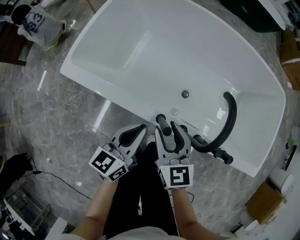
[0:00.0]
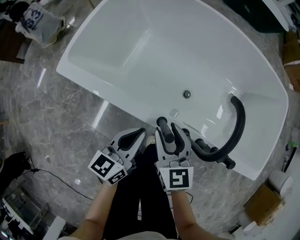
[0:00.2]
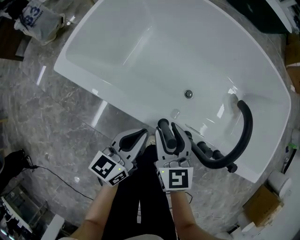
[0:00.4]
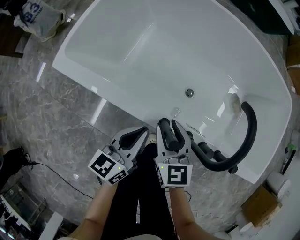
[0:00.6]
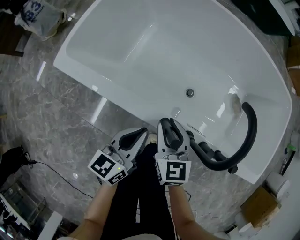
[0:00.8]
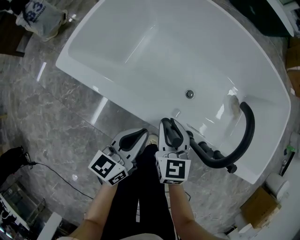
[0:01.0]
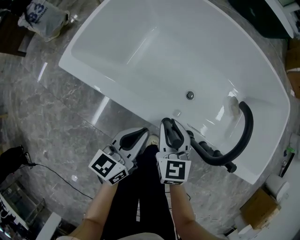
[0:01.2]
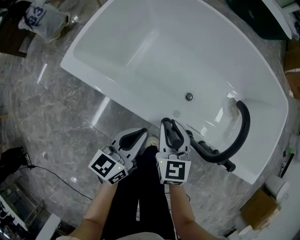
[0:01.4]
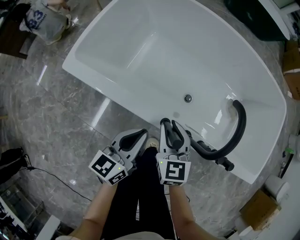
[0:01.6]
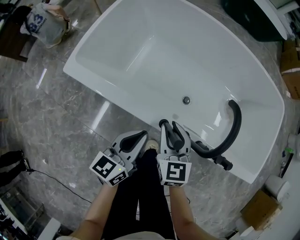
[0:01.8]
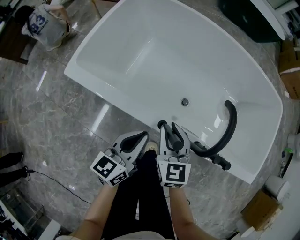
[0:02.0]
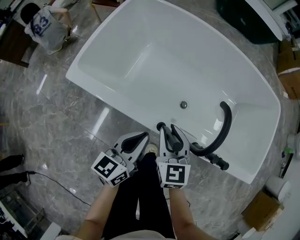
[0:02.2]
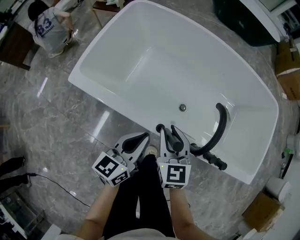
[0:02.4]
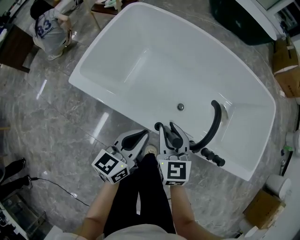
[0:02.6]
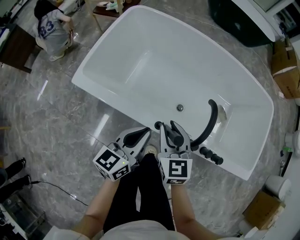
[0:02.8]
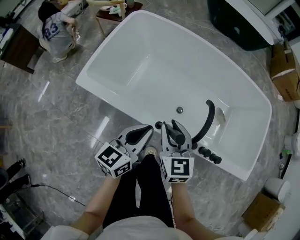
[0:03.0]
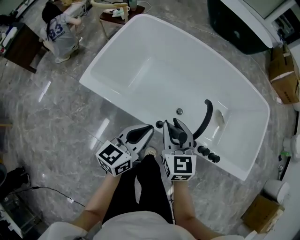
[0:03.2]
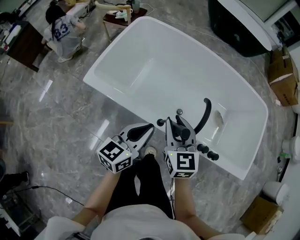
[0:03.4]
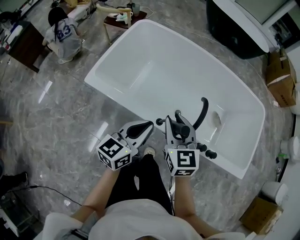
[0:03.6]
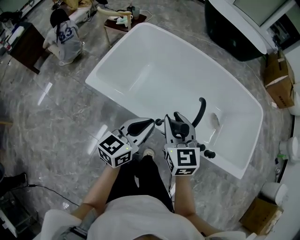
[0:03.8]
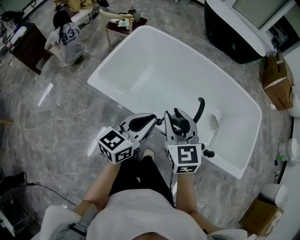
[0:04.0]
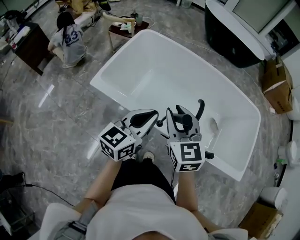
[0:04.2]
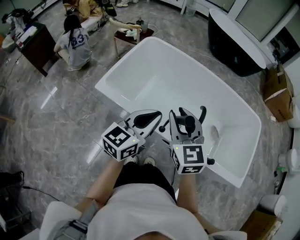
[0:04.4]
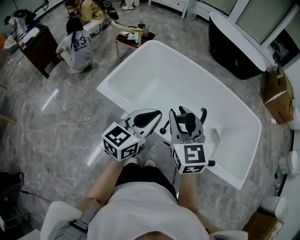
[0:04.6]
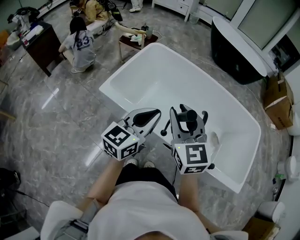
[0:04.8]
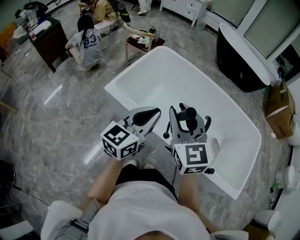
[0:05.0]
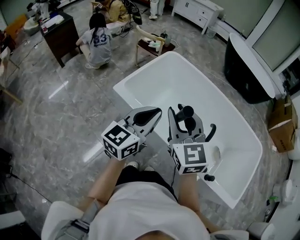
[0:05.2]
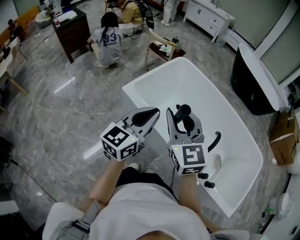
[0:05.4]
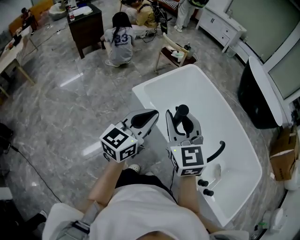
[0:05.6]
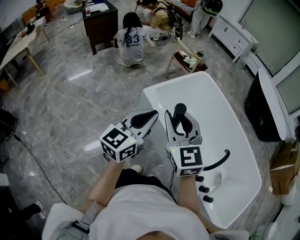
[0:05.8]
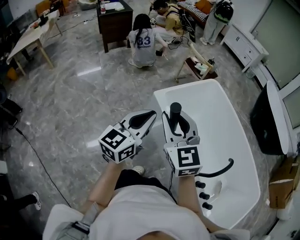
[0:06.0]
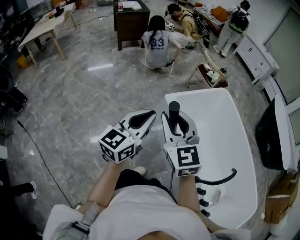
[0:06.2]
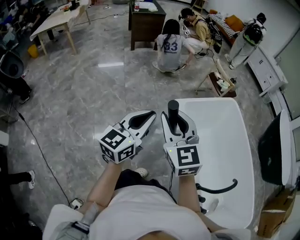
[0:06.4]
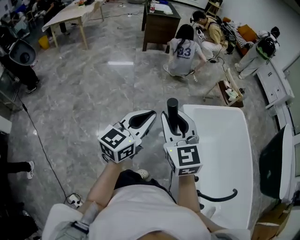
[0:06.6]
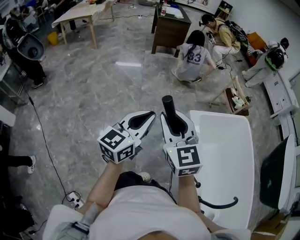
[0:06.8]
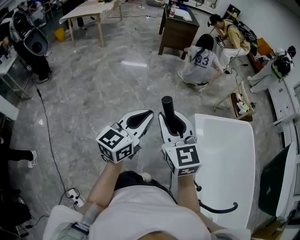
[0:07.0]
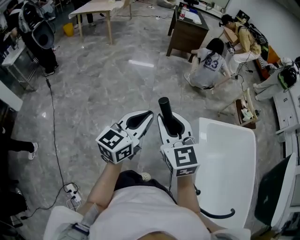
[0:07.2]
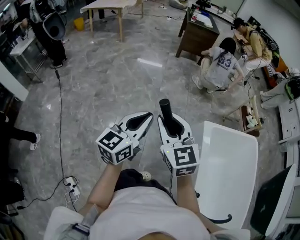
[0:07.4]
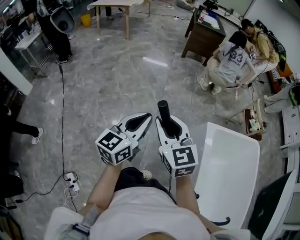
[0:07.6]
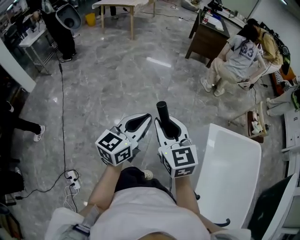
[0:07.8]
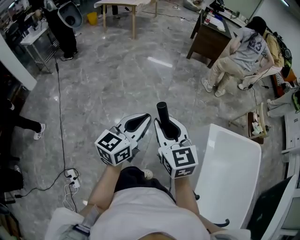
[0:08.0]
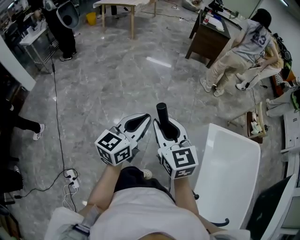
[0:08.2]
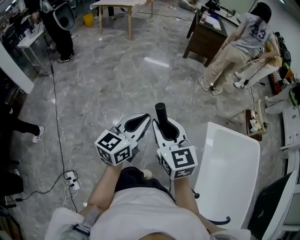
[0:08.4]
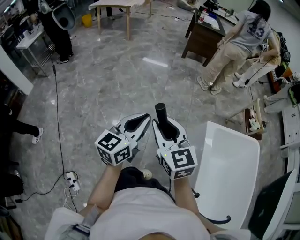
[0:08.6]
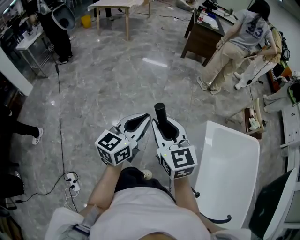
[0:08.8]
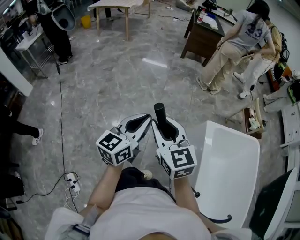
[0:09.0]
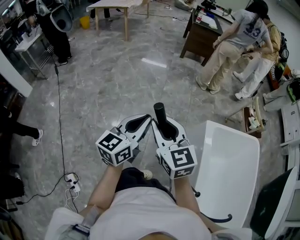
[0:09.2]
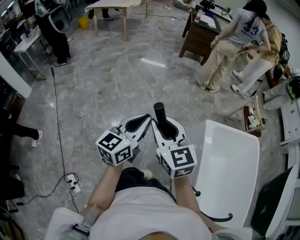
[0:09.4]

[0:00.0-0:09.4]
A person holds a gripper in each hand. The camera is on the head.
0:01.6 to 0:03.2: Both grippers travel together upward, some 15 cm.
0:03.2 to 0:04.8: The two grippers go approximately 15 cm upward.
0:04.8 to 0:06.2: The left gripper shifts by approximately 30 cm, and rotates approximately 40 degrees. Meanwhile the right gripper shifts by roughly 30 cm, and turns by some 40 degrees.
0:06.2 to 0:07.8: The right gripper ends up approximately 25 cm from where it was, and swivels about 40 degrees, while the left gripper moves about 25 cm, and changes its angle by some 40 degrees.
0:07.8 to 0:09.4: There are only small adjustments of the grippers.

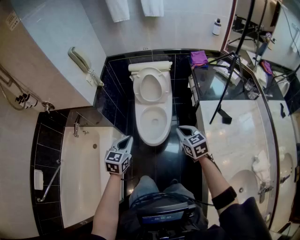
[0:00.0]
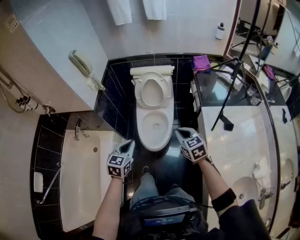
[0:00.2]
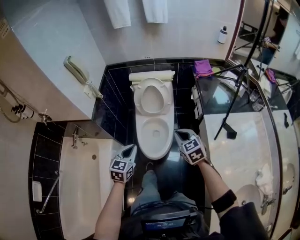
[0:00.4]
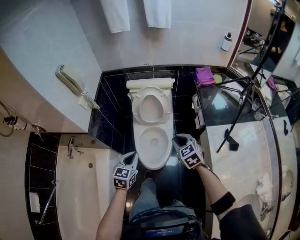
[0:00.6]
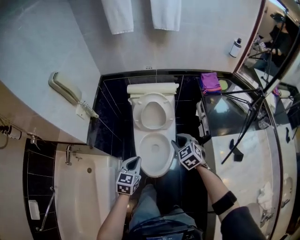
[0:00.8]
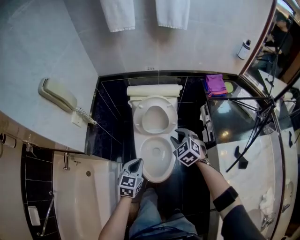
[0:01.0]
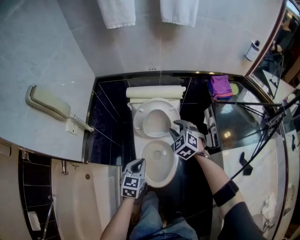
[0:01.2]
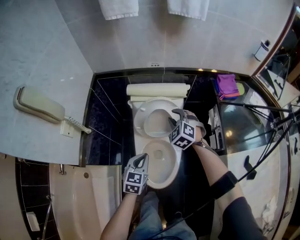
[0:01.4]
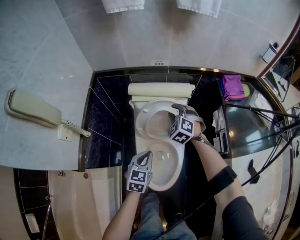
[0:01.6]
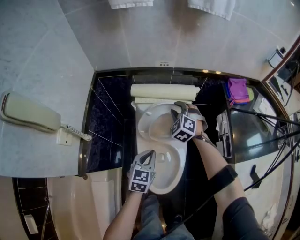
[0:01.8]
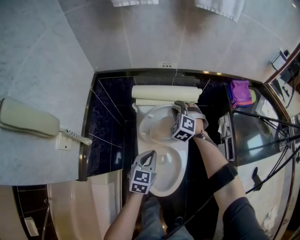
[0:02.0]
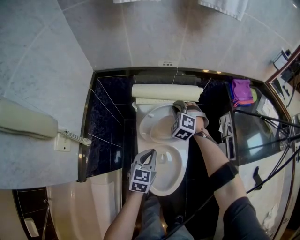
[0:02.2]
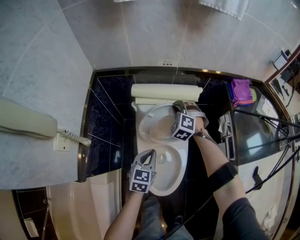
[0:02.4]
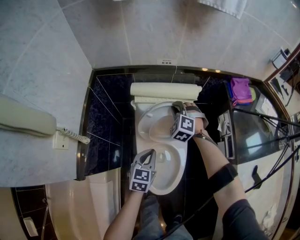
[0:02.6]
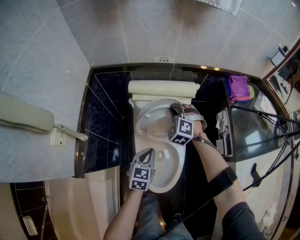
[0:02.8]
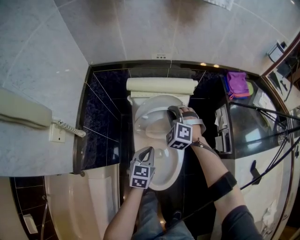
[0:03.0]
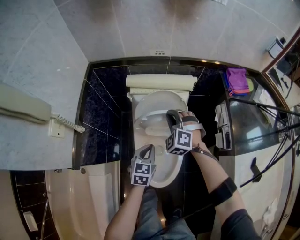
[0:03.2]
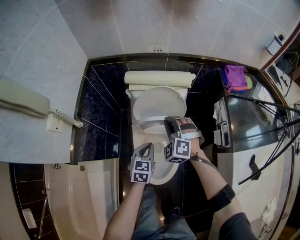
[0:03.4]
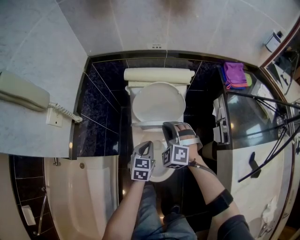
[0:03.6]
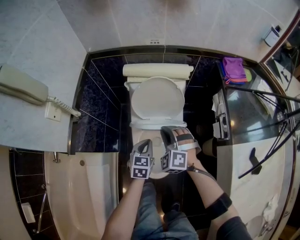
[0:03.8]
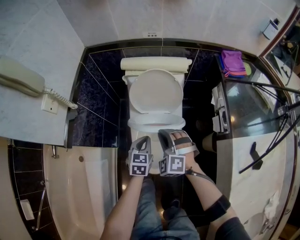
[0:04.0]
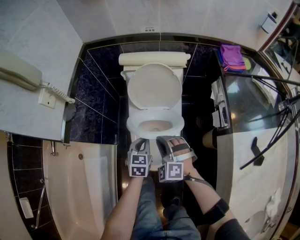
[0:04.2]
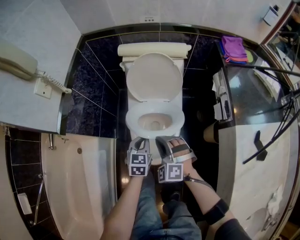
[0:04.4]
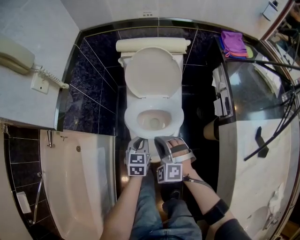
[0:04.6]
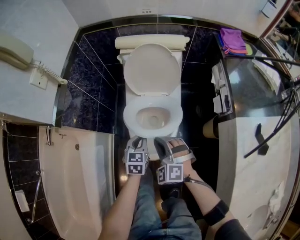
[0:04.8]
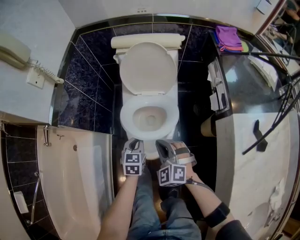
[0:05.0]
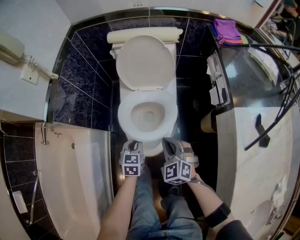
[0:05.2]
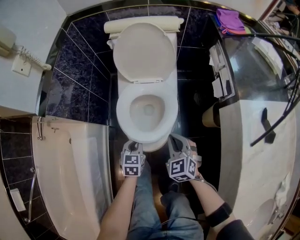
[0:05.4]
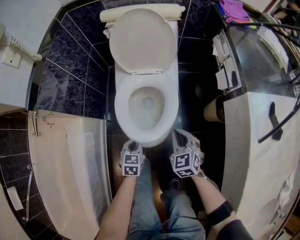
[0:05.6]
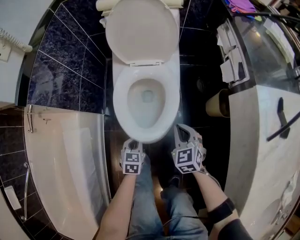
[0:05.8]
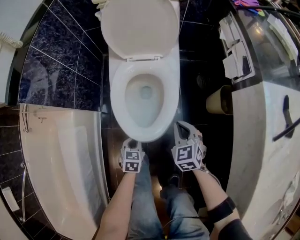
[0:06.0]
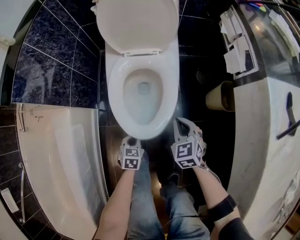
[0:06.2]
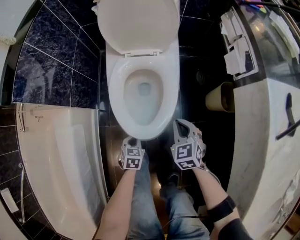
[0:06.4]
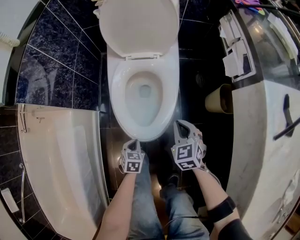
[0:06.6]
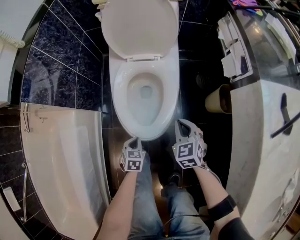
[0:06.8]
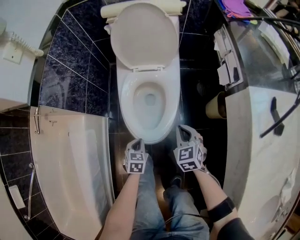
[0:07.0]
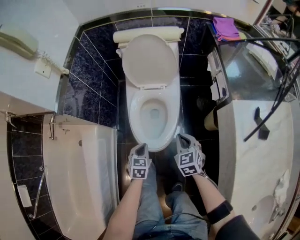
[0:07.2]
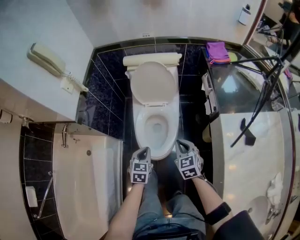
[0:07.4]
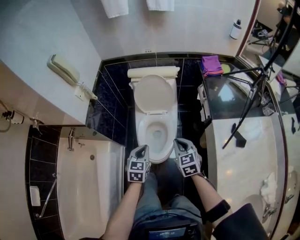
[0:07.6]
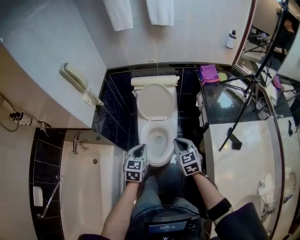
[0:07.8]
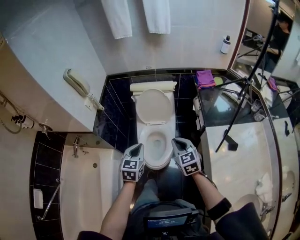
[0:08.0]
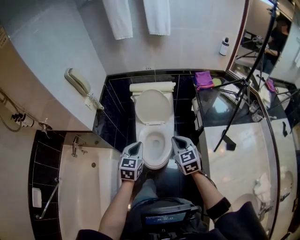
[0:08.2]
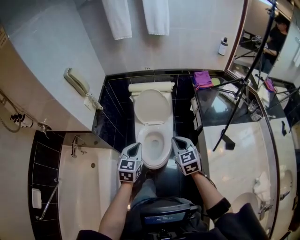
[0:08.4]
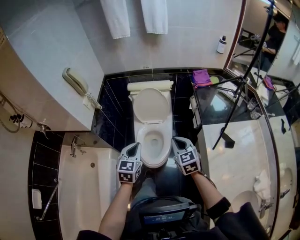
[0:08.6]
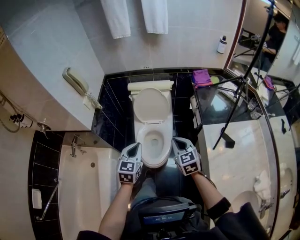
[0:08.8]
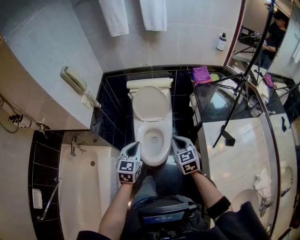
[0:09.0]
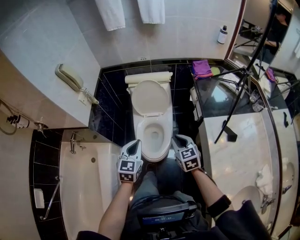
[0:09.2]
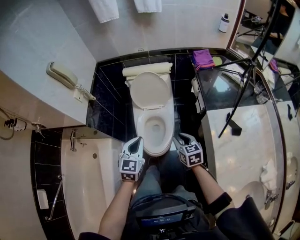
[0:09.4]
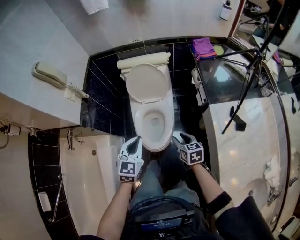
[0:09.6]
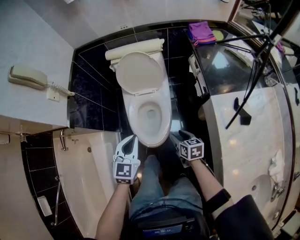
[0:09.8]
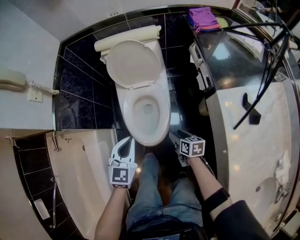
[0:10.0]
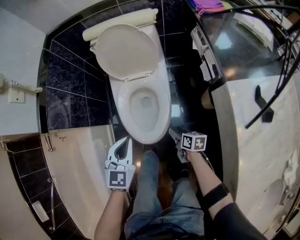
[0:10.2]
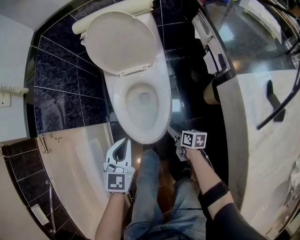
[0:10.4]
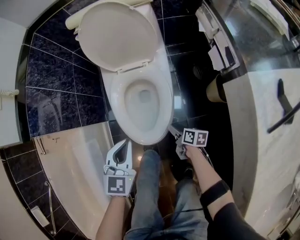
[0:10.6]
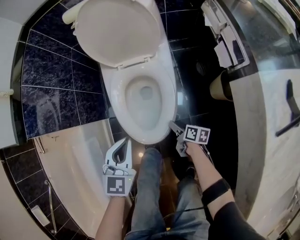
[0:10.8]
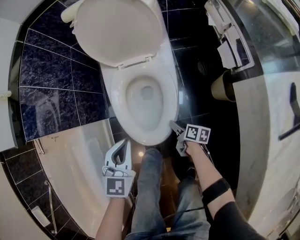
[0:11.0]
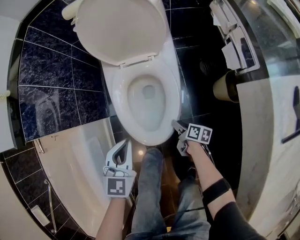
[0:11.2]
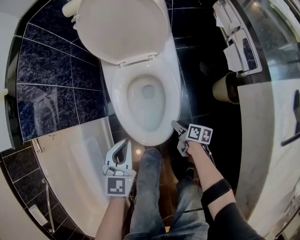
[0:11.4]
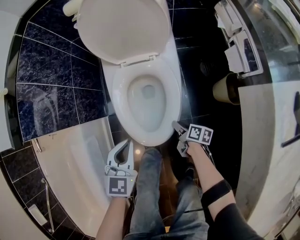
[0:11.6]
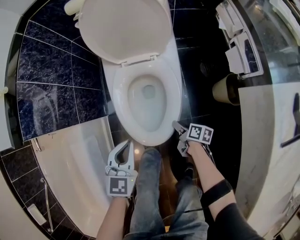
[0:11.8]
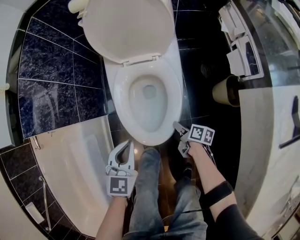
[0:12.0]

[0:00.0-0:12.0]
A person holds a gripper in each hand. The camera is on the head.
0:00.0 to 0:01.6: The right gripper moves forward, about 50 cm, rolls counterclockwise, seen from behind, by approximately 40 degrees, and opens its fingers. The left gripper goes approximately 40 cm forward and downward.
0:01.6 to 0:03.0: The left gripper ends up approximately 5 cm from where it was, while the right gripper closes.
0:03.0 to 0:04.4: The left gripper is displaced backward and downward by approximately 15 cm, while the right gripper heads backward, covering approximately 30 cm.
0:04.4 to 0:06.0: The right gripper moves downward and to the right, approximately 25 cm, and rotates around the line of its fingers by approximately 50 degrees, clockwise from behind, while the left gripper heads downward and backward, covering approximately 35 cm.
0:06.0 to 0:07.6: The two grippers go some 40 cm upward. The left gripper changes its angle by about 20 degrees.
0:07.6 to 0:09.0: Both grippers travel together upward, approximately 15 cm.
0:09.0 to 0:10.4: The right gripper shifts approximately 50 cm downward, twists some 60 degrees clockwise, seen from behind, and opens up. Meanwhile the left gripper goes some 30 cm downward.
0:10.4 to 0:12.0: Both grippers travel together downward, some 10 cm. The right gripper closes its fingers.

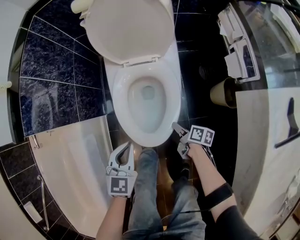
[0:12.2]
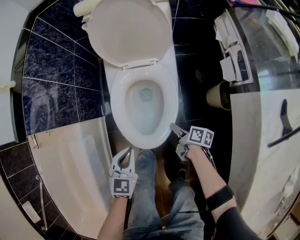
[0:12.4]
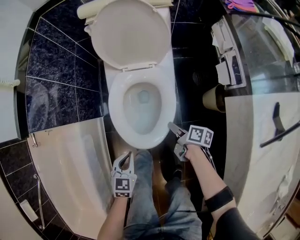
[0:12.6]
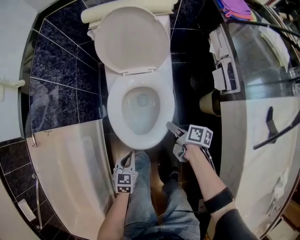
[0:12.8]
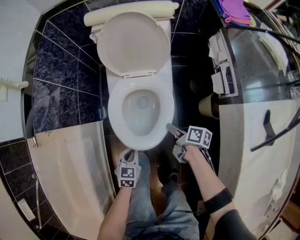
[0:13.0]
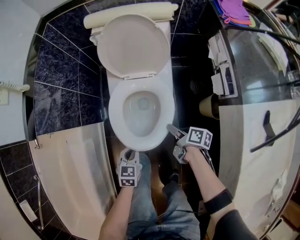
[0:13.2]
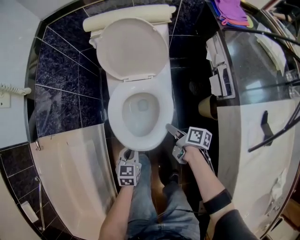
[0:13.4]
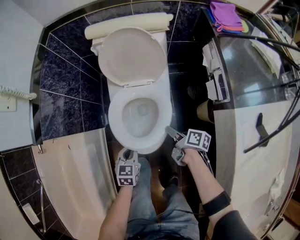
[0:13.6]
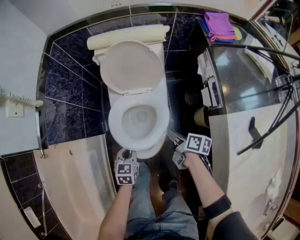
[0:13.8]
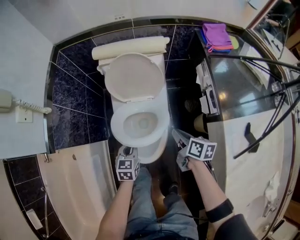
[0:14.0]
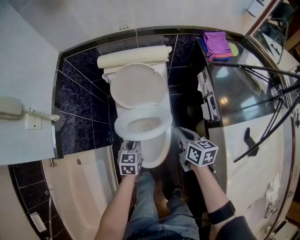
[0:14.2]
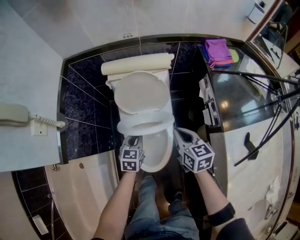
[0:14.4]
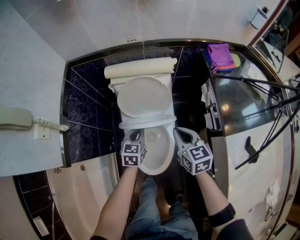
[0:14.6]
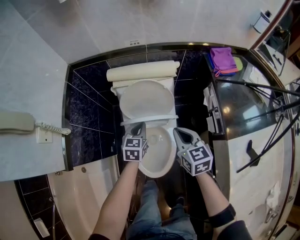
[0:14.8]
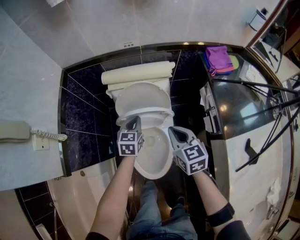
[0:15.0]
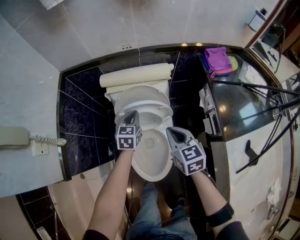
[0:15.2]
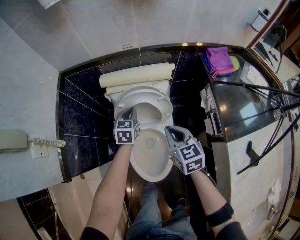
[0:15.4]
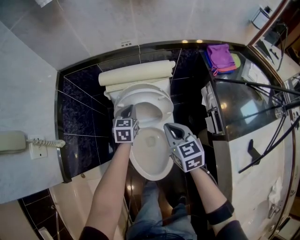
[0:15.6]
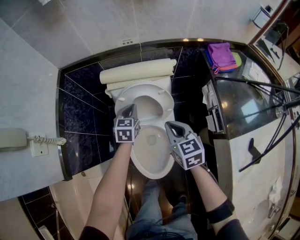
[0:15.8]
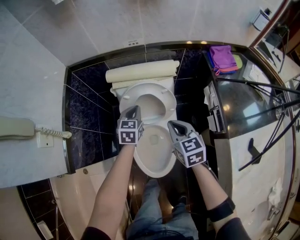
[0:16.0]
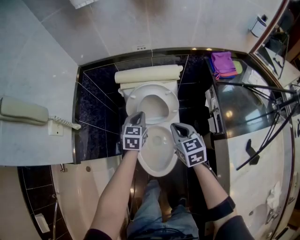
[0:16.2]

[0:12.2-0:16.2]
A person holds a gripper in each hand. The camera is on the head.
0:12.2 to 0:13.6: The right gripper shifts approximately 20 cm upward, while the left gripper goes backward and returns, about 5 cm each way.
0:13.6 to 0:14.8: The left gripper travels forward and upward by about 30 cm; the right gripper heads upward and forward, covering about 30 cm, twists approximately 60 degrees counterclockwise, seen from behind, and closes.
0:14.8 to 0:16.2: The left gripper shifts about 5 cm upward, and moves approximately 10 cm forward and comes back.
